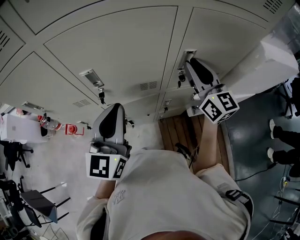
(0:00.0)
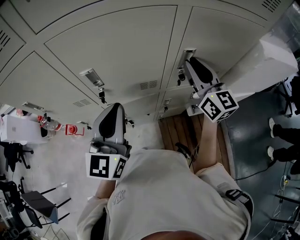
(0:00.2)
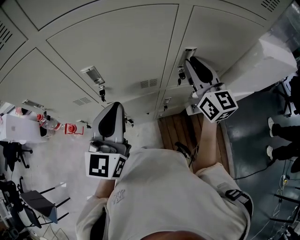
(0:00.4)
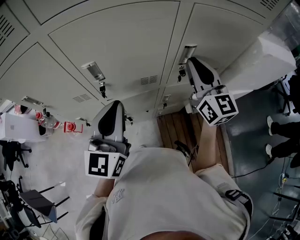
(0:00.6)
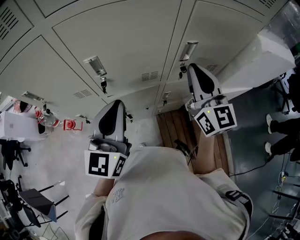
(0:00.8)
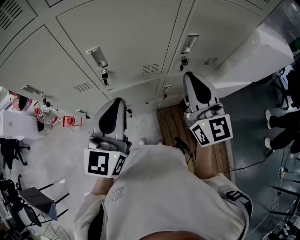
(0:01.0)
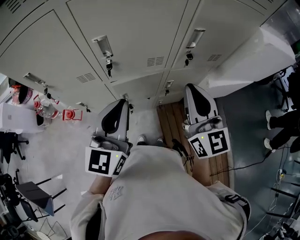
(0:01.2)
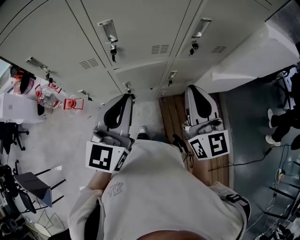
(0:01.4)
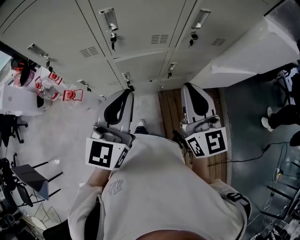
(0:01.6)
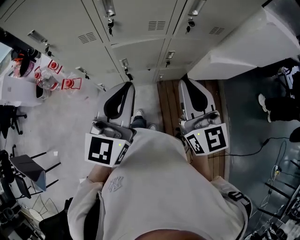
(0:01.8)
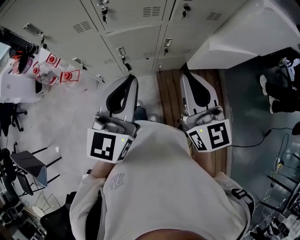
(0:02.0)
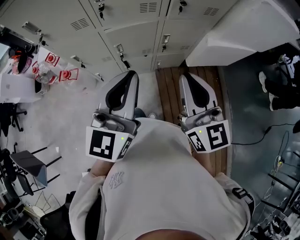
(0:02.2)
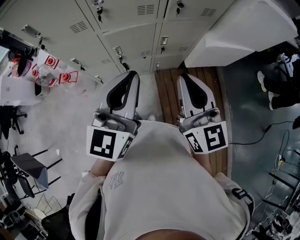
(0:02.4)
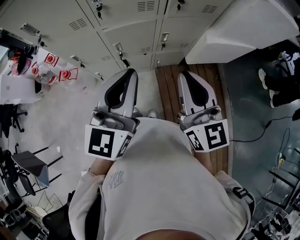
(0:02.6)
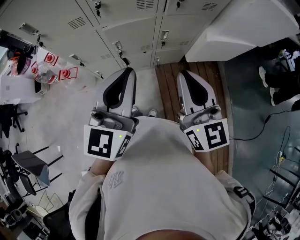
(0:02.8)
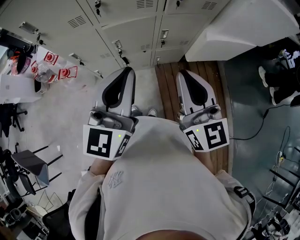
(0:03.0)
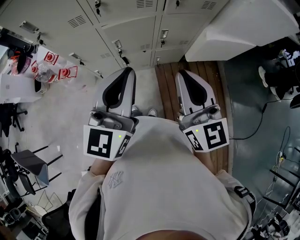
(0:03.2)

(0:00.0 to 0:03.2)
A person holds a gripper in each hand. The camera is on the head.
0:00.0 - 0:01.6: The left gripper is displaced backward by some 15 cm, while the right gripper moves backward, about 25 cm.
0:01.6 - 0:03.2: The left gripper moves backward and to the right, roughly 10 cm, while the right gripper moves backward, about 10 cm.

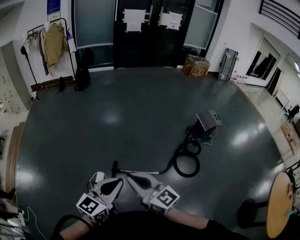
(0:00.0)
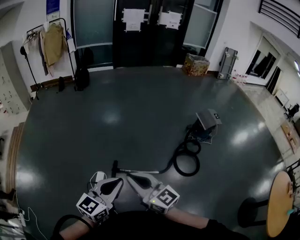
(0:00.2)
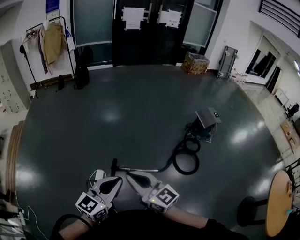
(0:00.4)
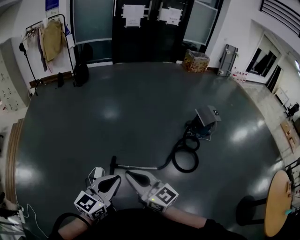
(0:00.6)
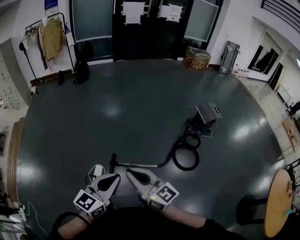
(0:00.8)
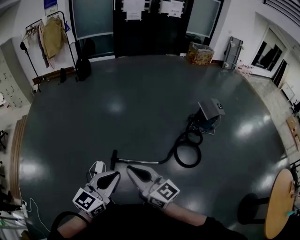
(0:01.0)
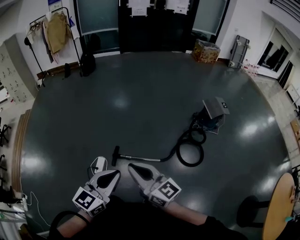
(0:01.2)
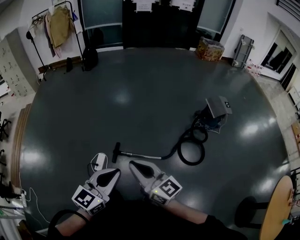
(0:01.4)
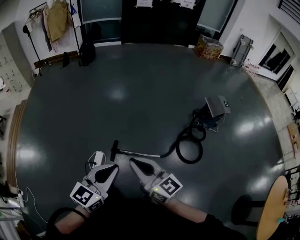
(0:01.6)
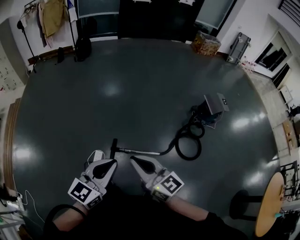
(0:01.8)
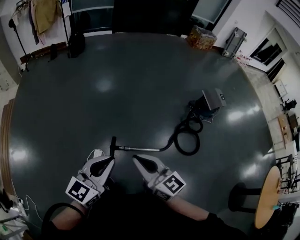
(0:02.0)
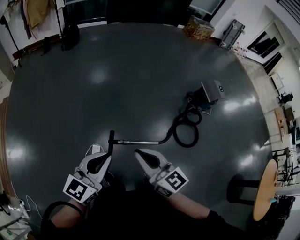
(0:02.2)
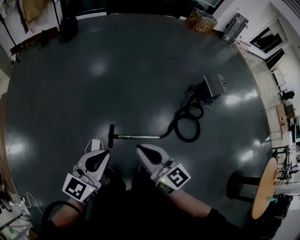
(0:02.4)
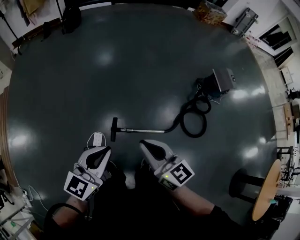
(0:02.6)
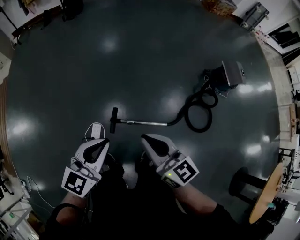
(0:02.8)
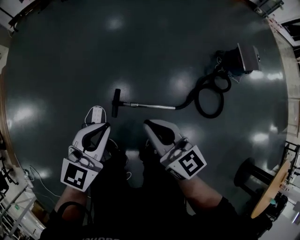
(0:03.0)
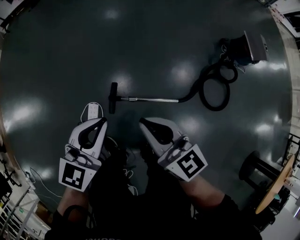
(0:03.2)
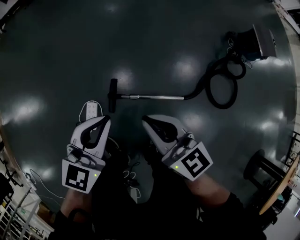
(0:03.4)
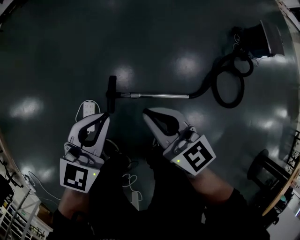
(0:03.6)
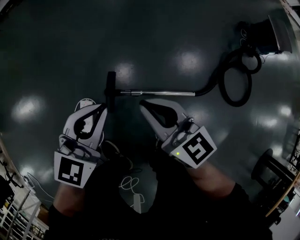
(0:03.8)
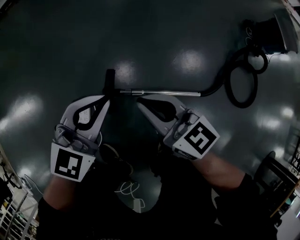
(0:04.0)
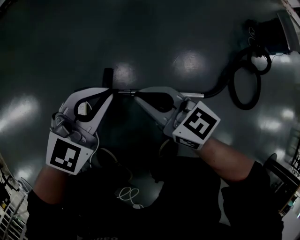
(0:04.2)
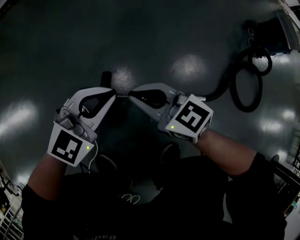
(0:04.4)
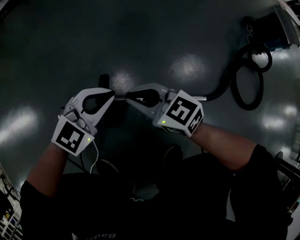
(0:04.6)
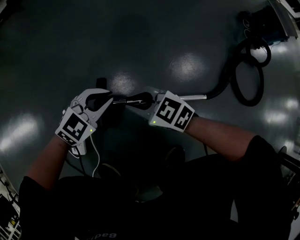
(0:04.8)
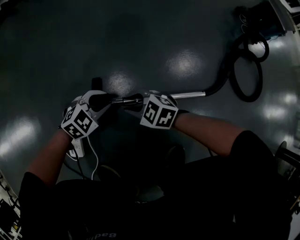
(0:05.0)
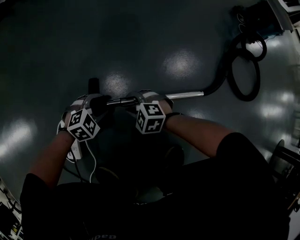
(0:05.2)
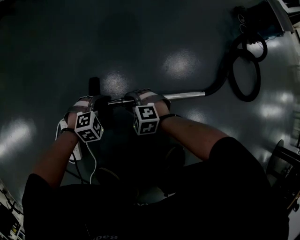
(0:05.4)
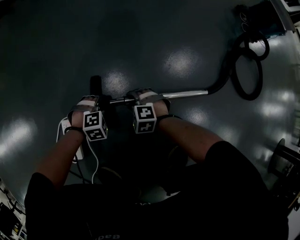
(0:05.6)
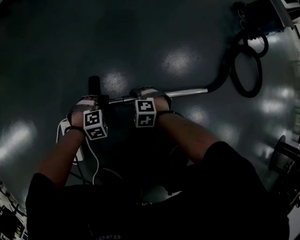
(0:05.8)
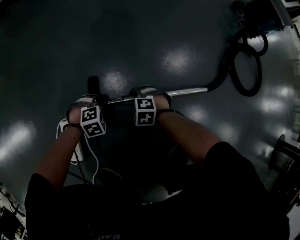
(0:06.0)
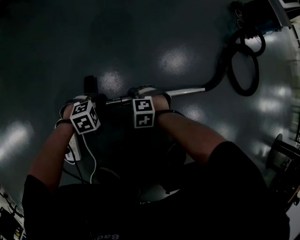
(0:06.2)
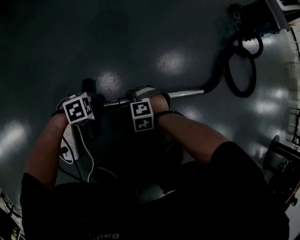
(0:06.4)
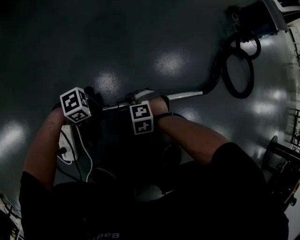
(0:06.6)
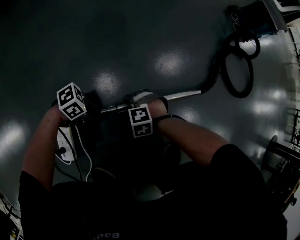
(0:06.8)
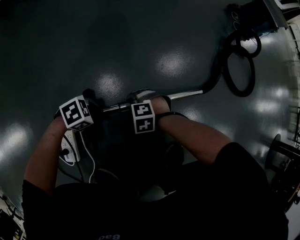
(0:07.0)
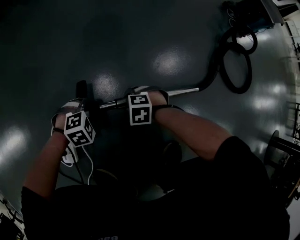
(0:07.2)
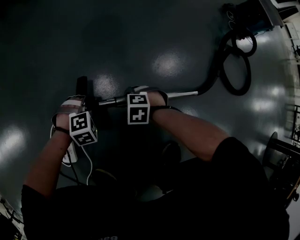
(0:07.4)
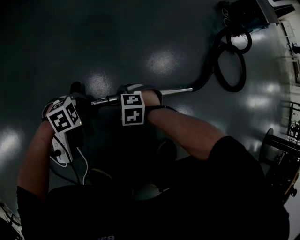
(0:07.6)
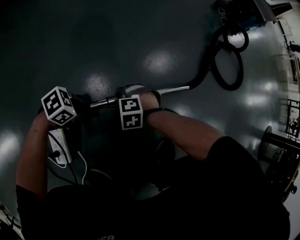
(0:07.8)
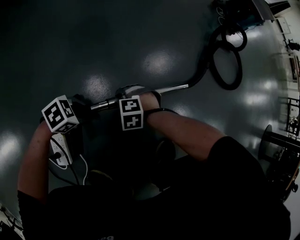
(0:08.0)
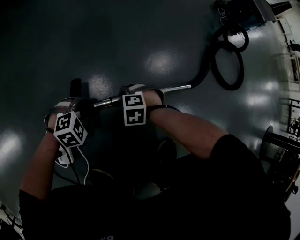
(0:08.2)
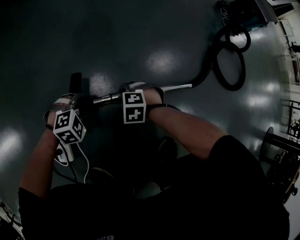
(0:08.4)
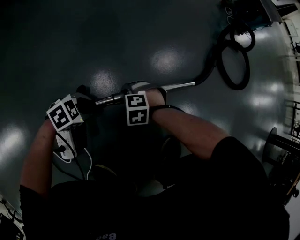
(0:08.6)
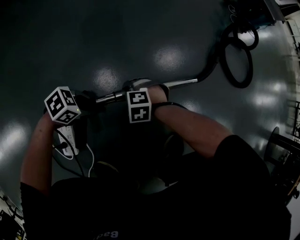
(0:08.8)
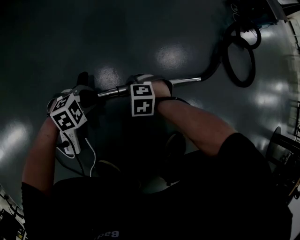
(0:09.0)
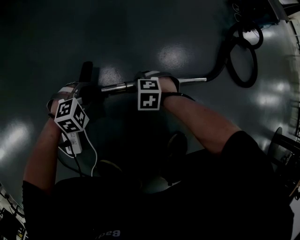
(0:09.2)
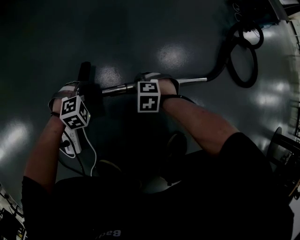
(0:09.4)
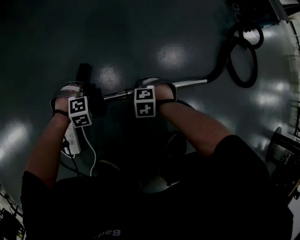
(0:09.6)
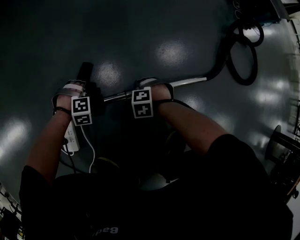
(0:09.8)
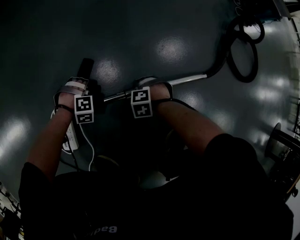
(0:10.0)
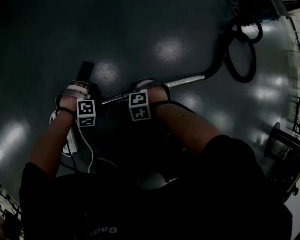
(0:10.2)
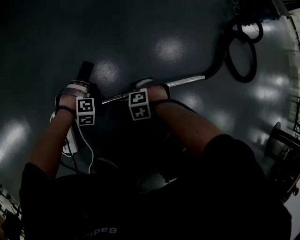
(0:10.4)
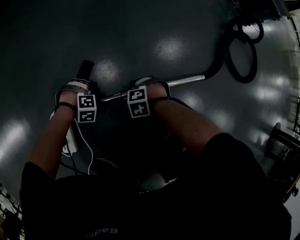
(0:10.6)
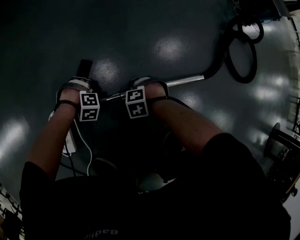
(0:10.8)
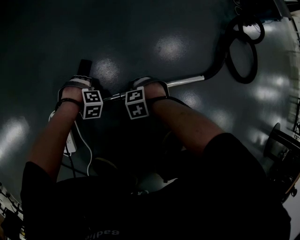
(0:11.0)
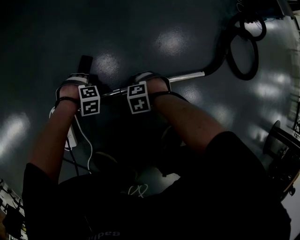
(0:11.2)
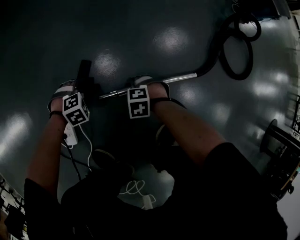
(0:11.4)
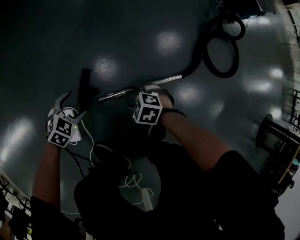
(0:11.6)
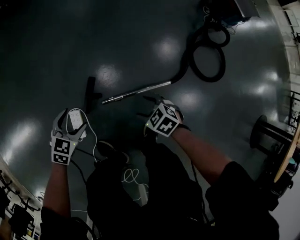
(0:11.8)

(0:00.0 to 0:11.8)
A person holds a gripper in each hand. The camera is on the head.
0:00.0 - 0:01.4: The right gripper heads to the right, covering approximately 5 cm.
0:01.4 - 0:03.0: The right gripper goes about 30 cm forward and downward; the left gripper moves forward, downward and to the left, about 35 cm.
0:03.0 - 0:04.4: The two grippers go roughly 40 cm downward. The right gripper swivels approximately 20 degrees. Meanwhile the left gripper rotates roughly 30 degrees.
0:04.4 - 0:06.0: Both grippers travel together downward, some 35 cm. The right gripper tilts its fingers approximately 50 degrees downward, and opens up. The left gripper angles its fingers downward, by about 50 degrees, and opens.
0:06.0 - 0:07.4: The left gripper shifts about 5 cm upward.
0:07.4 - 0:08.8: The left gripper shifts by roughly 5 cm, and turns by about 50 degrees.
0:08.8 - 0:10.4: The left gripper travels downward by roughly 15 cm, and tips its fingers downward by about 30 degrees; the right gripper moves downward, approximately 10 cm.
0:10.4 - 0:11.8: Both grippers travel together upward, approximately 40 cm. The left gripper twists approximately 70 degrees counterclockwise, seen from behind, and opens up. The right gripper rolls clockwise, seen from behind, by about 40 degrees, and opens.

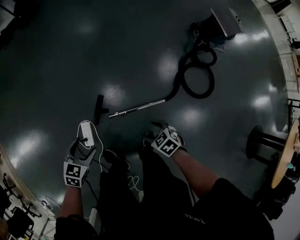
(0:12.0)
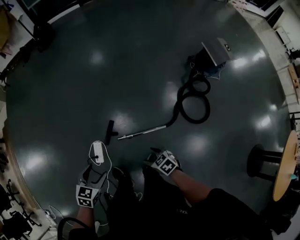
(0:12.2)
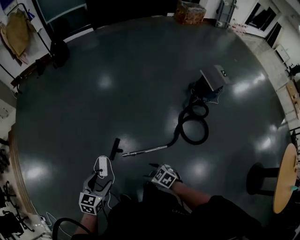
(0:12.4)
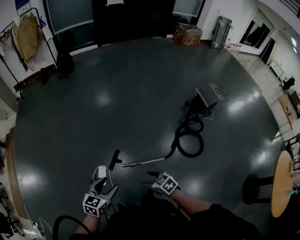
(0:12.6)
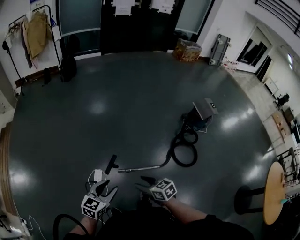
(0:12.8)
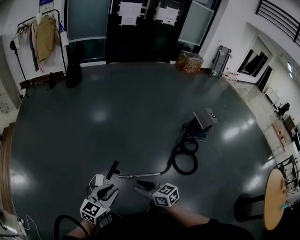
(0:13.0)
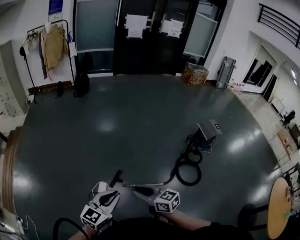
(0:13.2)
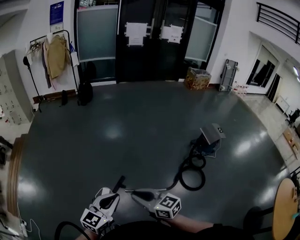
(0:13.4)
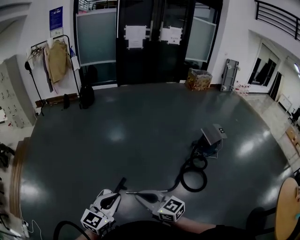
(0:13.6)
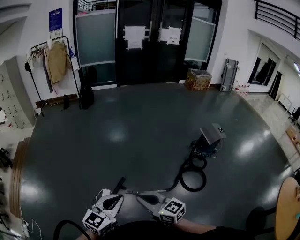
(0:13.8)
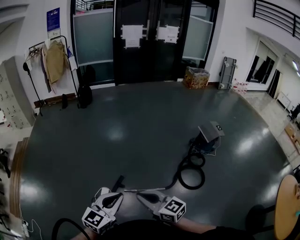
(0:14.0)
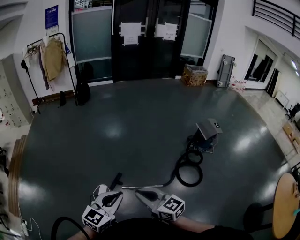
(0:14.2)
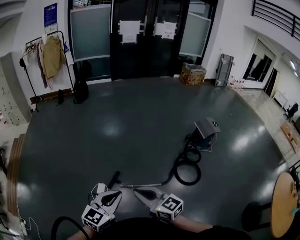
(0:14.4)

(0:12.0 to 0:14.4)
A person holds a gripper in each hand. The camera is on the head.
0:12.0 - 0:13.2: The right gripper travels upward by approximately 50 cm, points its fingers roughly 50 degrees further upward, and closes its fingers, while the left gripper goes approximately 50 cm upward and backward, tilts its fingers roughly 40 degrees upward, and closes up.
0:13.2 - 0:14.4: The left gripper heads to the right, covering about 10 cm. Meanwhile the right gripper goes some 10 cm to the right, upward and backward.

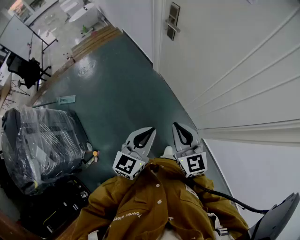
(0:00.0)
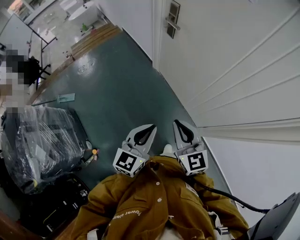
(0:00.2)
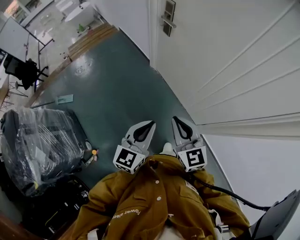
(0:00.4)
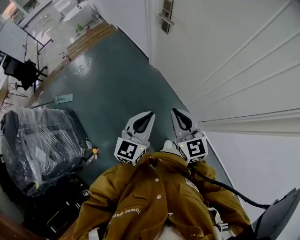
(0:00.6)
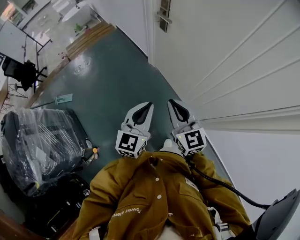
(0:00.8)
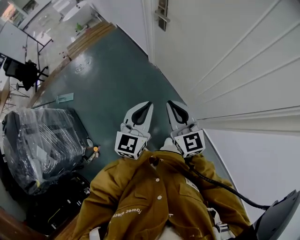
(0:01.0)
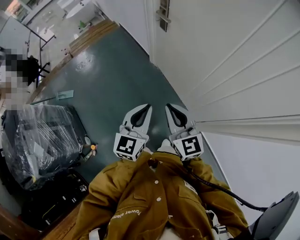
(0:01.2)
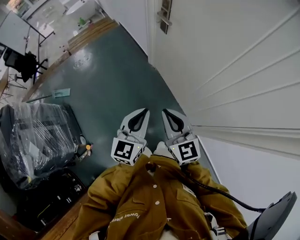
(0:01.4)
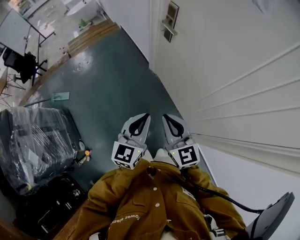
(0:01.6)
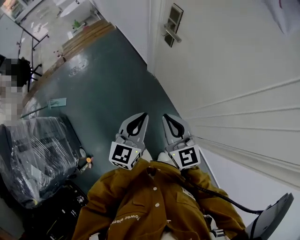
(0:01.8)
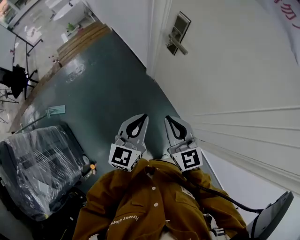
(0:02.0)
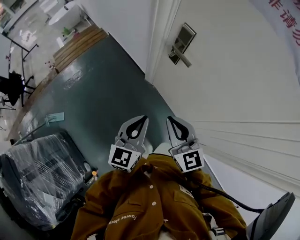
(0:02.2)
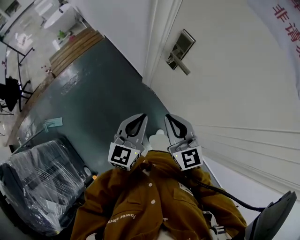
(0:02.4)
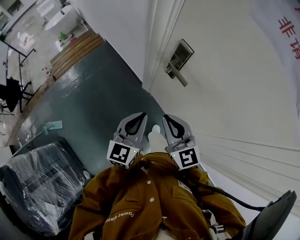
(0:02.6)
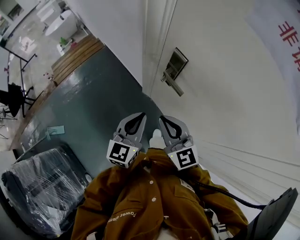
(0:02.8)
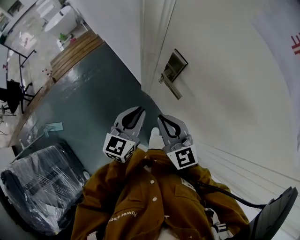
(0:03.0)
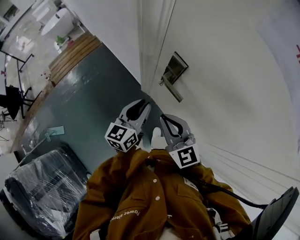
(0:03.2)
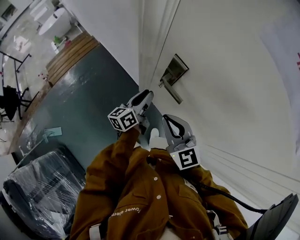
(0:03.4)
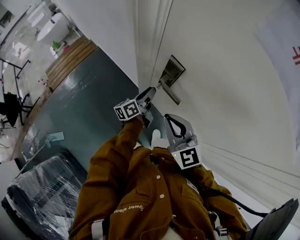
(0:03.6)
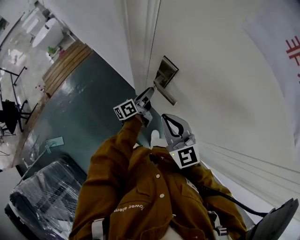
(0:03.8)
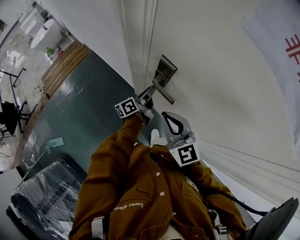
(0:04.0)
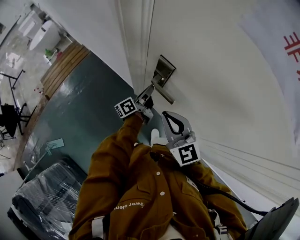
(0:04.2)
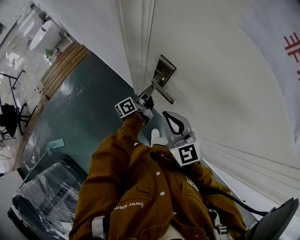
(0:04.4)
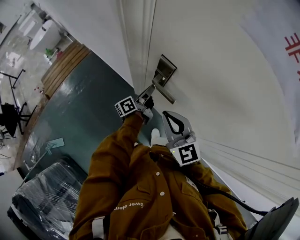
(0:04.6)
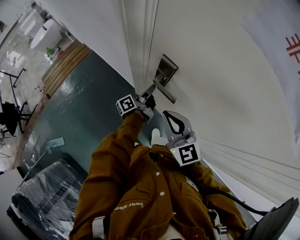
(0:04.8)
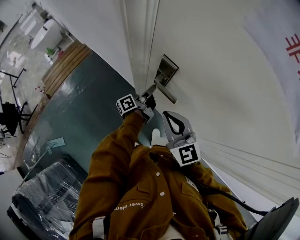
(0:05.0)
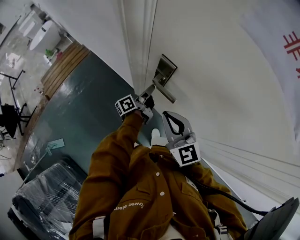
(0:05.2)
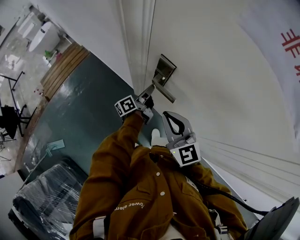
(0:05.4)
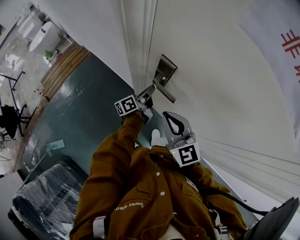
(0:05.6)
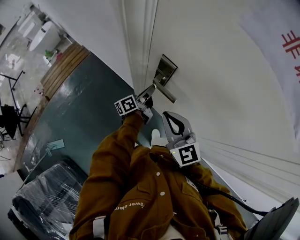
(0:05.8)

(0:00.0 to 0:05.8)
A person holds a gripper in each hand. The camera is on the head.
0:00.0 - 0:01.4: Both grippers travel together forward, about 5 cm.
0:01.4 - 0:02.8: The two grippers travel together, forward, approximately 40 cm.
0:02.8 - 0:04.4: The right gripper travels forward by about 5 cm. Meanwhile the left gripper shifts some 25 cm forward and downward, and twists some 70 degrees counterclockwise, seen from behind.
0:04.4 - 0:05.8: There are only small adjustments of the grippers.
